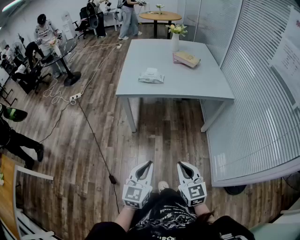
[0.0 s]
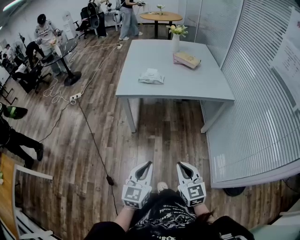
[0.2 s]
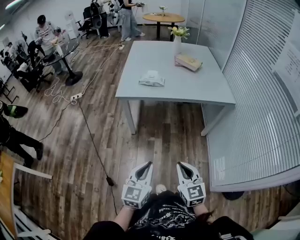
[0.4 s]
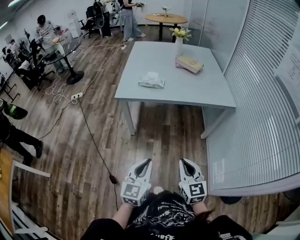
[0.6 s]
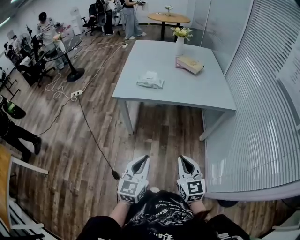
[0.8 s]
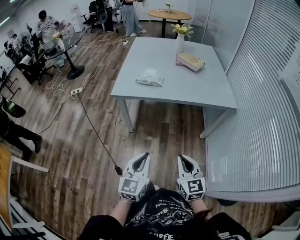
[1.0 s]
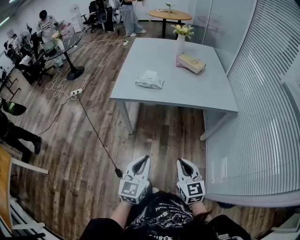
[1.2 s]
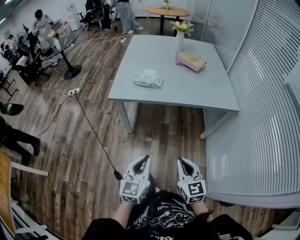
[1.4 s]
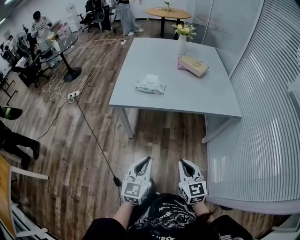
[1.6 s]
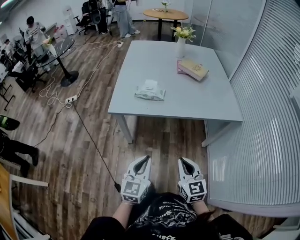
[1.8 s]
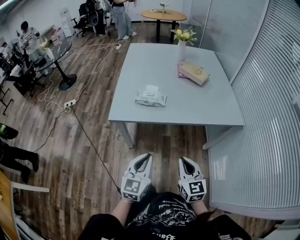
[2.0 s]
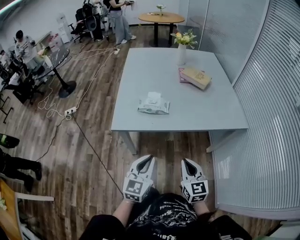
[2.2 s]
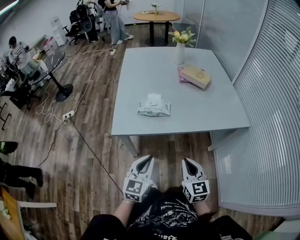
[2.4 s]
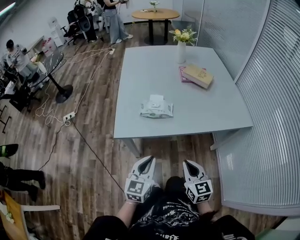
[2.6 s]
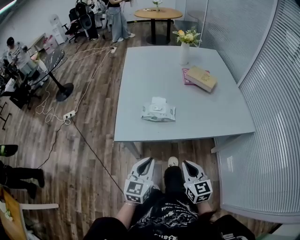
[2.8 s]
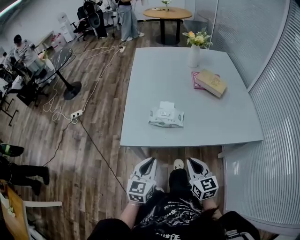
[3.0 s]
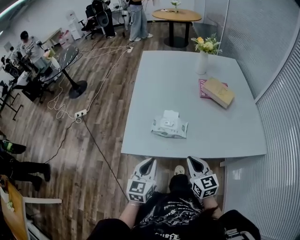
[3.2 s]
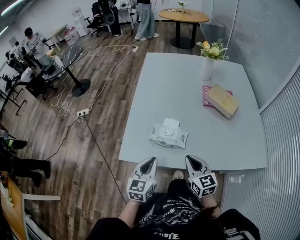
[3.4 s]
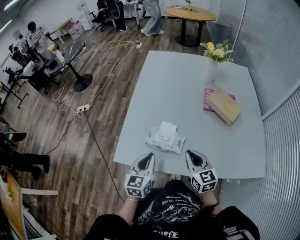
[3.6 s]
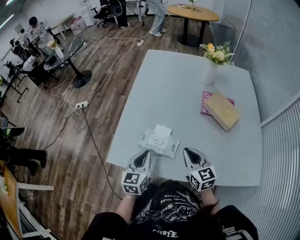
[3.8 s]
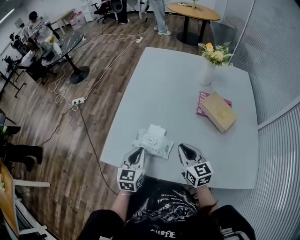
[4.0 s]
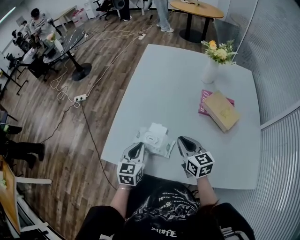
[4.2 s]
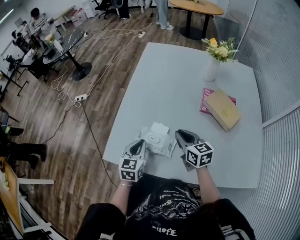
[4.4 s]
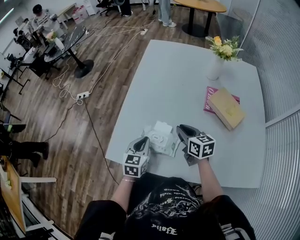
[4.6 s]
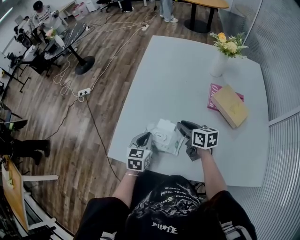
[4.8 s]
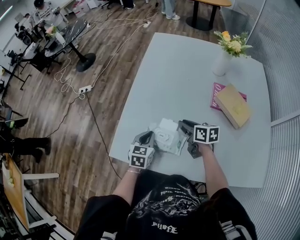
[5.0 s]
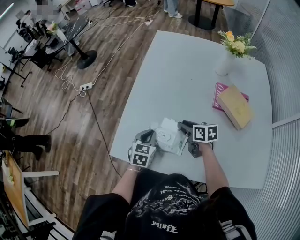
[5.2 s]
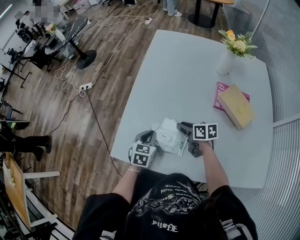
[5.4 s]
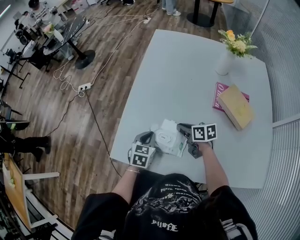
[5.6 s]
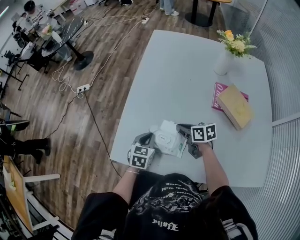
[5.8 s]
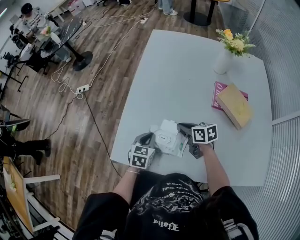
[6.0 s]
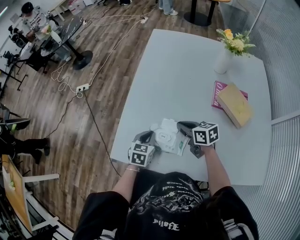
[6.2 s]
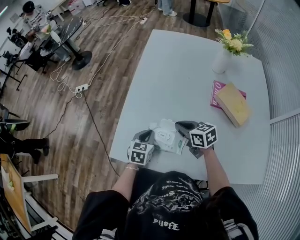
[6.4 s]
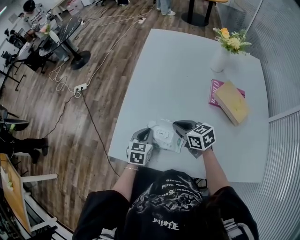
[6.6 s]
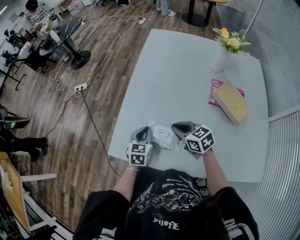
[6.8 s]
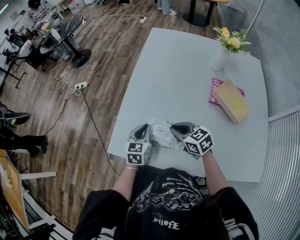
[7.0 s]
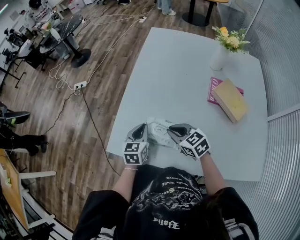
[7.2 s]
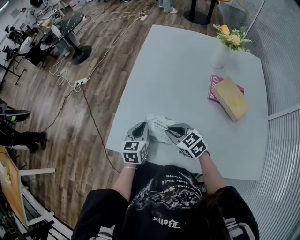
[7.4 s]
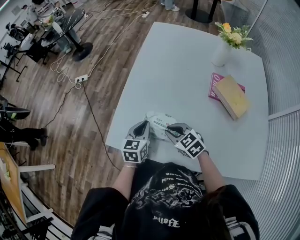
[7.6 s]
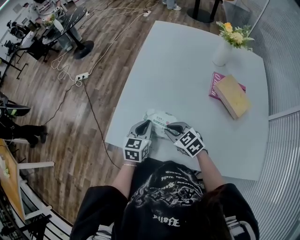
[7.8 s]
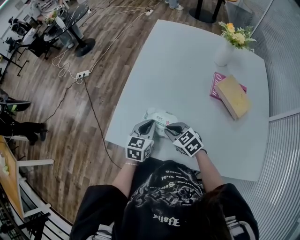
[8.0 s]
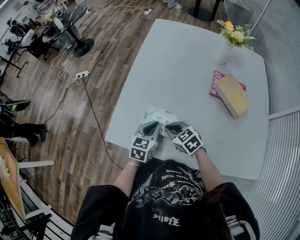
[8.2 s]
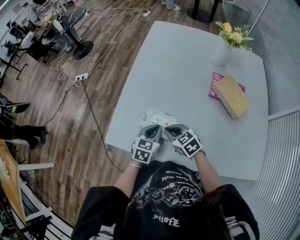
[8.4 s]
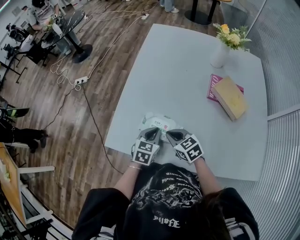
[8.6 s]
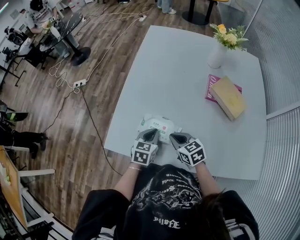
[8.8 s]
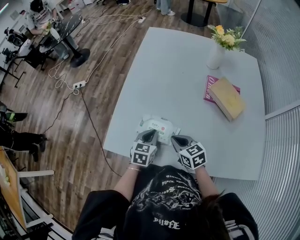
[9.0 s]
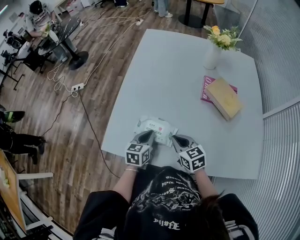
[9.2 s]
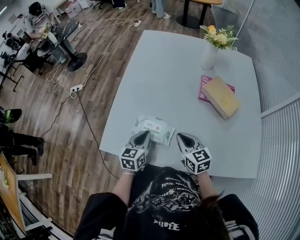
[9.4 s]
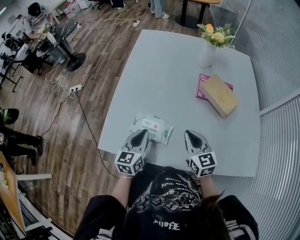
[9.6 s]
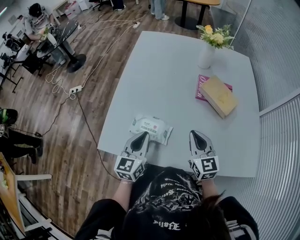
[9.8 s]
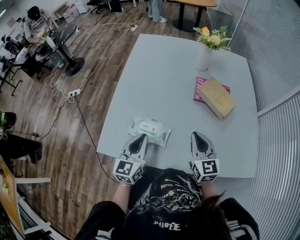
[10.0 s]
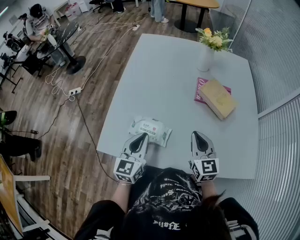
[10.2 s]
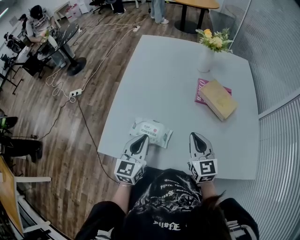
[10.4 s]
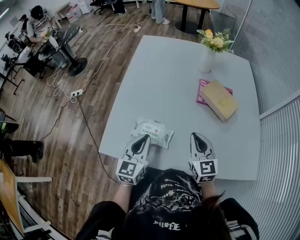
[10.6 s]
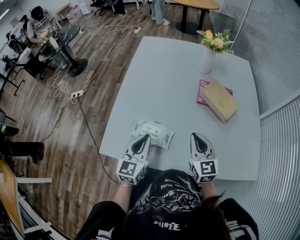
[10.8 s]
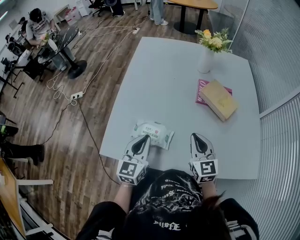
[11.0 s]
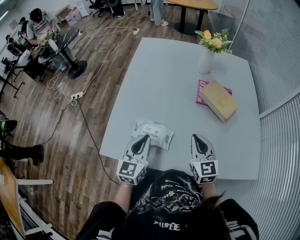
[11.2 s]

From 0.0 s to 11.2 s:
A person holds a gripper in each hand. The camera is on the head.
From 0.0 s to 1.6 s: The two grippers go approximately 20 cm forward.
From 1.6 s to 3.2 s: Both grippers move forward, some 35 cm.
From 3.2 s to 4.8 s: The grippers both shift forward by about 25 cm. The right gripper rotates approximately 40 degrees, and opens up.
From 4.8 s to 6.4 s: The left gripper moves downward, some 5 cm.
From 6.4 s to 8.0 s: The right gripper goes about 10 cm backward and to the left, and turns by approximately 30 degrees; the left gripper is displaced upward by some 5 cm.
From 8.0 s to 9.6 s: The right gripper moves to the right and upward, about 15 cm, and rotates approximately 40 degrees; the left gripper shifts by roughly 5 cm.
From 9.6 s to 11.2 s: The left gripper changes place by roughly 5 cm.

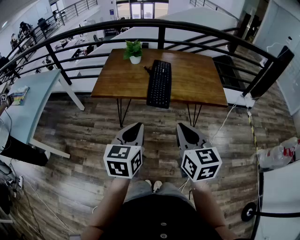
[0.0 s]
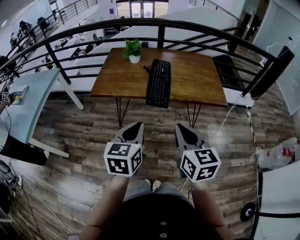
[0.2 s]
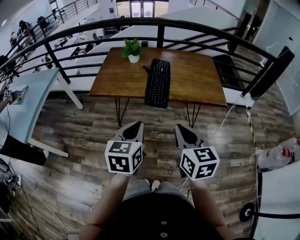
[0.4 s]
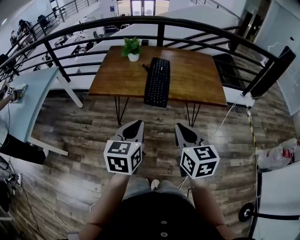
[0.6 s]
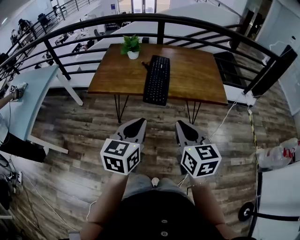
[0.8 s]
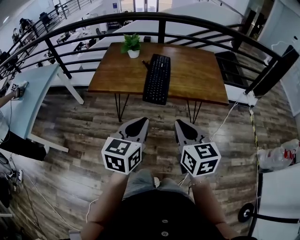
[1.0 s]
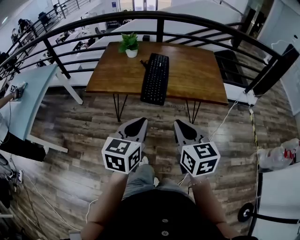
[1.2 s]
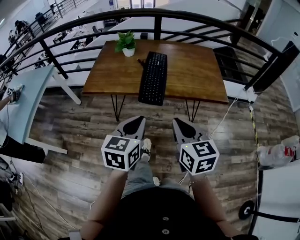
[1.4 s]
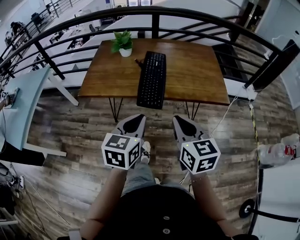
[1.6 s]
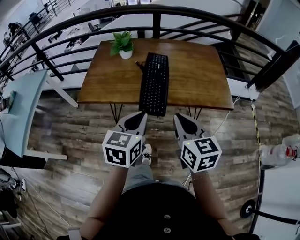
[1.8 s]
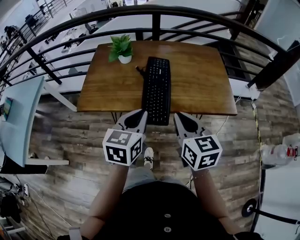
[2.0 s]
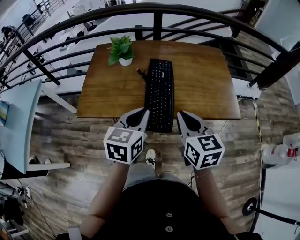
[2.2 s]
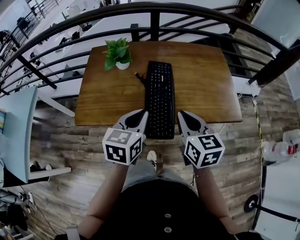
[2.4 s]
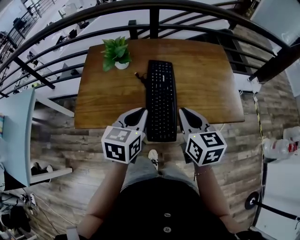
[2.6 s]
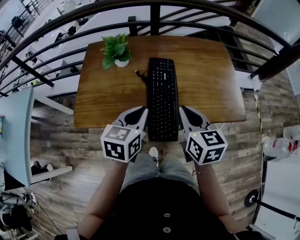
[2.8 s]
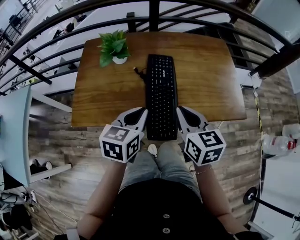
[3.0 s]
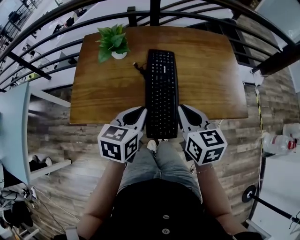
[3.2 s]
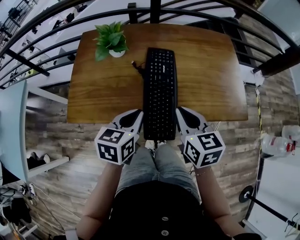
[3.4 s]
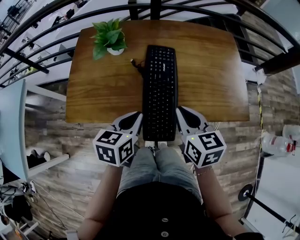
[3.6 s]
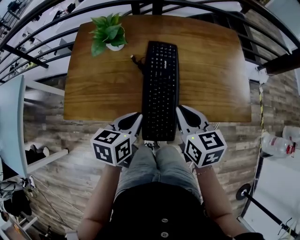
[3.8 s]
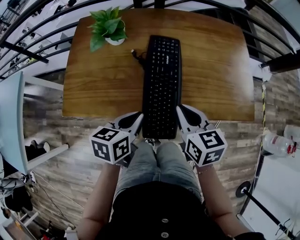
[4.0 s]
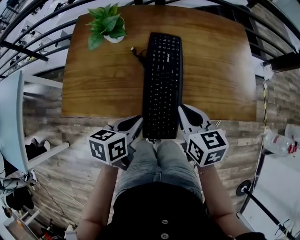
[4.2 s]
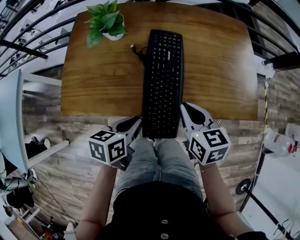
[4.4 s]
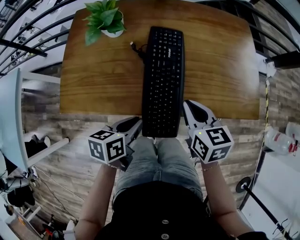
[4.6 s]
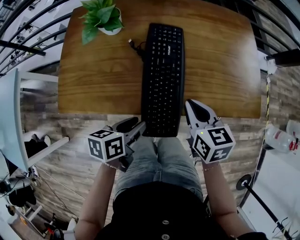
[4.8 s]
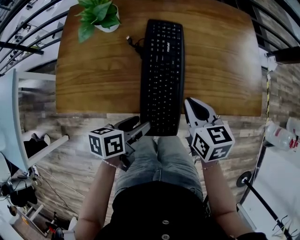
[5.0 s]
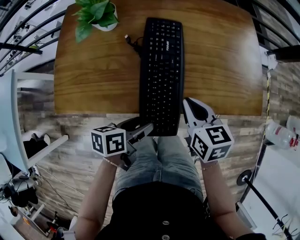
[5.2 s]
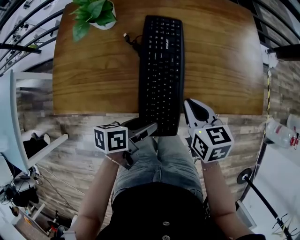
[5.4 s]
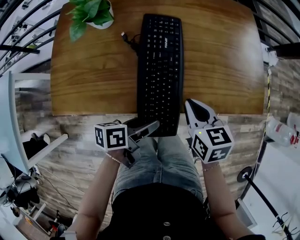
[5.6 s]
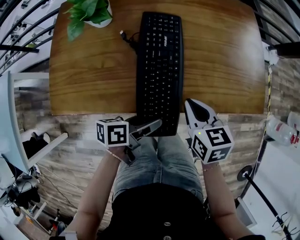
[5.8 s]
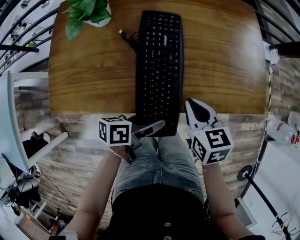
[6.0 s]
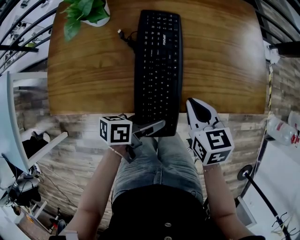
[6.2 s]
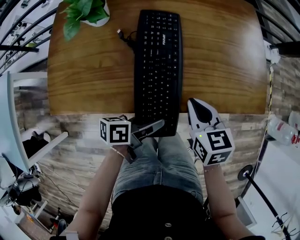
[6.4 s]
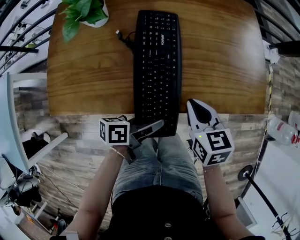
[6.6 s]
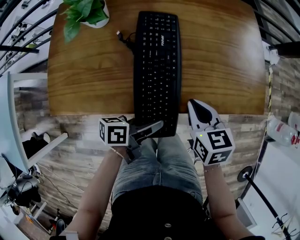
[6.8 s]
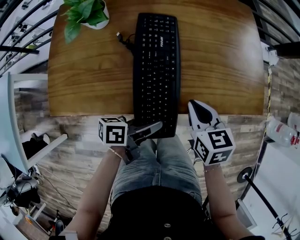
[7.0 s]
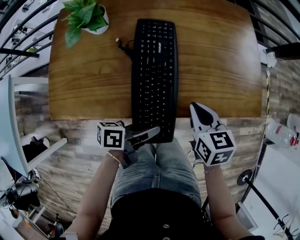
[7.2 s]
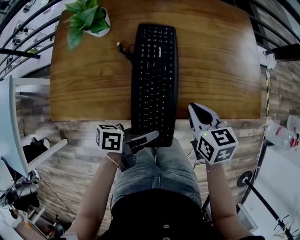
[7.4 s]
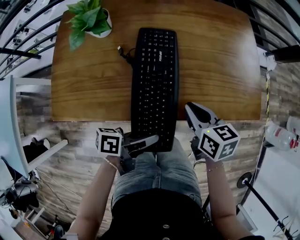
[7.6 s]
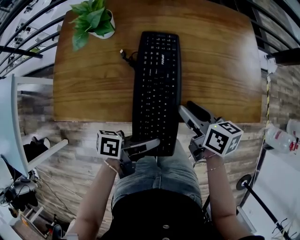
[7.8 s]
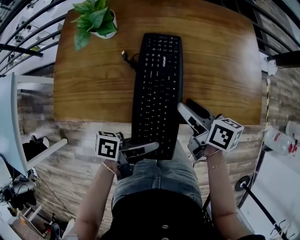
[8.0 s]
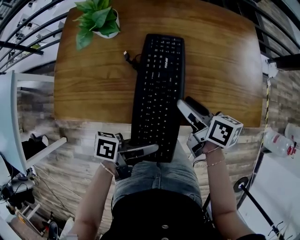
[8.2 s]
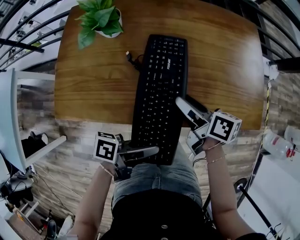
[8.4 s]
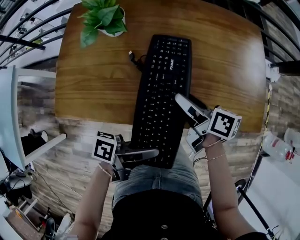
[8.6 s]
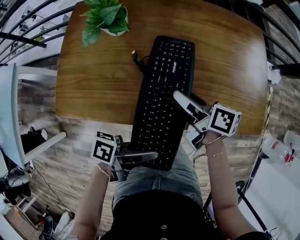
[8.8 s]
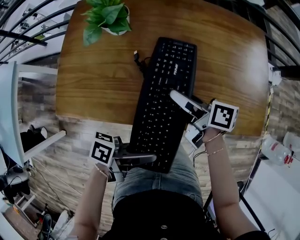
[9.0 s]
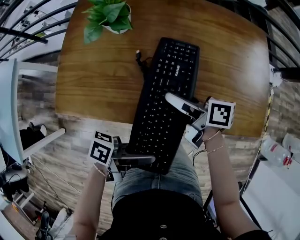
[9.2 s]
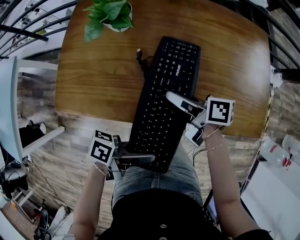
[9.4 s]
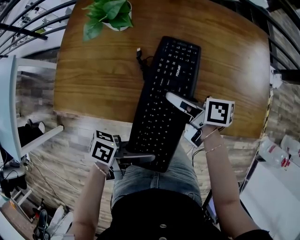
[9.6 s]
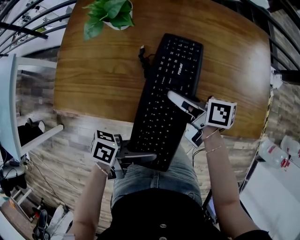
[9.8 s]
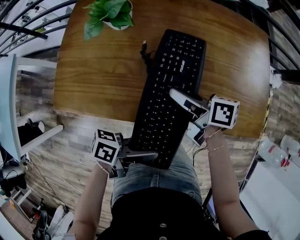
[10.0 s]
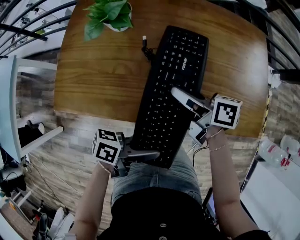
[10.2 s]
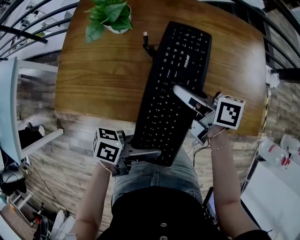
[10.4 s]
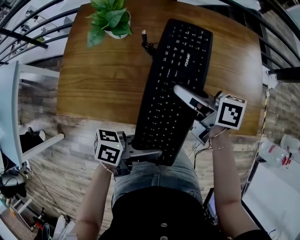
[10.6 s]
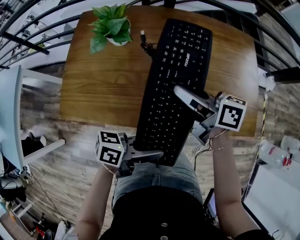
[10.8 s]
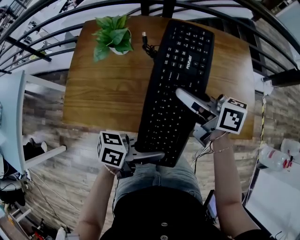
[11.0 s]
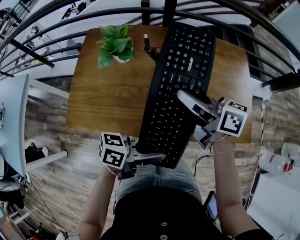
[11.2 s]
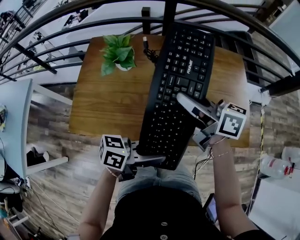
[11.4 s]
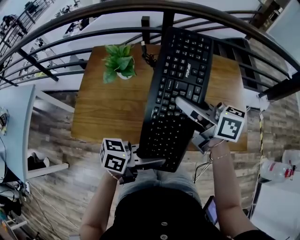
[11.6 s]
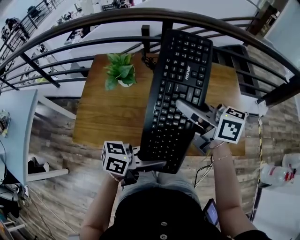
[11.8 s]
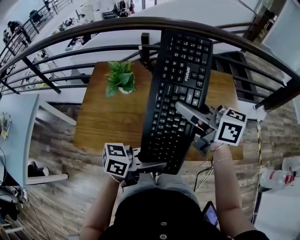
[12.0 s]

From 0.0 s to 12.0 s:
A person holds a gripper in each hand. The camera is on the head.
From 0.0 s to 1.6 s: The left gripper is displaced forward and to the right by roughly 10 cm, while the right gripper heads forward, covering roughly 10 cm.
From 1.6 s to 3.0 s: Both grippers travel together forward, some 25 cm.
From 3.0 s to 4.4 s: Both grippers travel together downward, about 10 cm. The left gripper swivels roughly 30 degrees.
From 4.4 s to 6.0 s: The left gripper is displaced to the right and downward by about 10 cm, changes its angle by approximately 30 degrees, and opens its fingers; the right gripper goes roughly 5 cm downward.
From 6.0 s to 7.6 s: The left gripper closes its fingers.
From 7.6 s to 9.0 s: The right gripper moves some 10 cm, changes its angle by about 40 degrees, and opens.
From 9.0 s to 10.4 s: The right gripper closes up.
From 10.4 s to 12.0 s: The left gripper goes roughly 15 cm upward, and rotates about 30 degrees; the right gripper shifts some 25 cm upward, and rotates roughly 30 degrees.

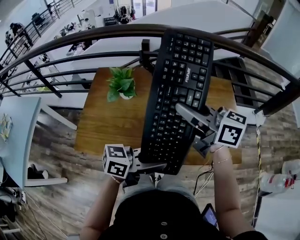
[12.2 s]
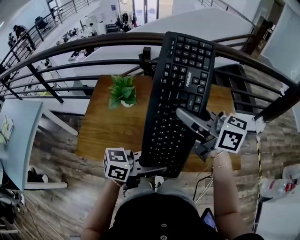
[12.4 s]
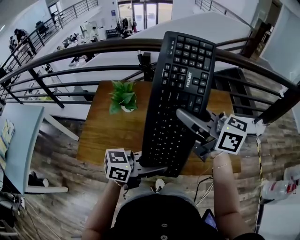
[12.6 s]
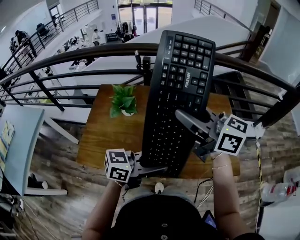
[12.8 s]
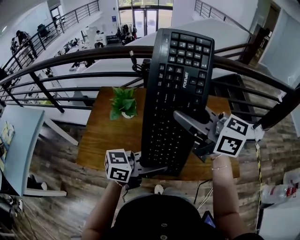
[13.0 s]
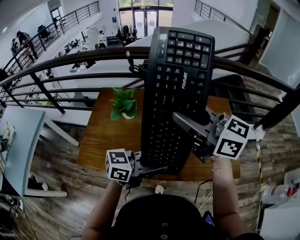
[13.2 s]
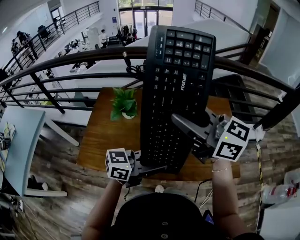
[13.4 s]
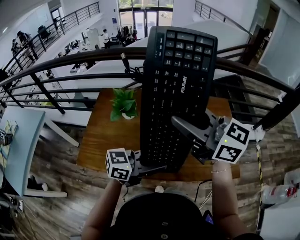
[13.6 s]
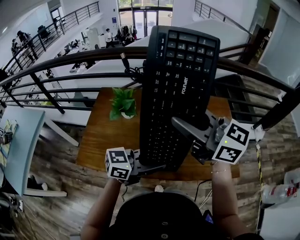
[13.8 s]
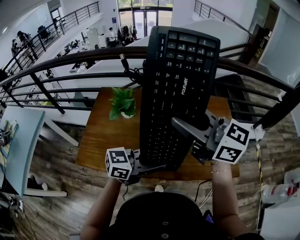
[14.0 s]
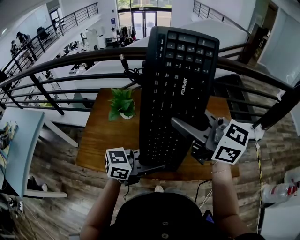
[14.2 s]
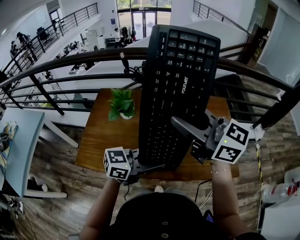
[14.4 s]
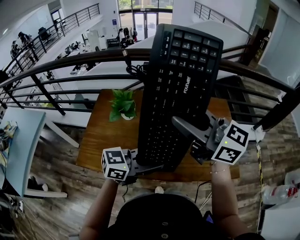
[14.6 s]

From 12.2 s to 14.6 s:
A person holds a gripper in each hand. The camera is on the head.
From 12.2 s to 13.4 s: The right gripper shifts some 5 cm upward.
From 13.4 s to 14.6 s: The grippers stay close to where they were, moving slightly.
